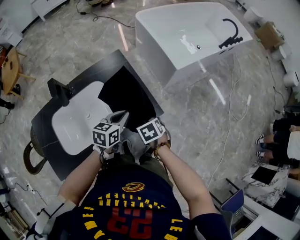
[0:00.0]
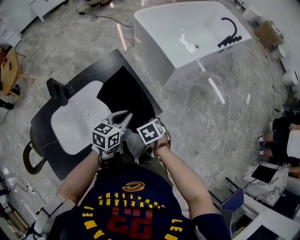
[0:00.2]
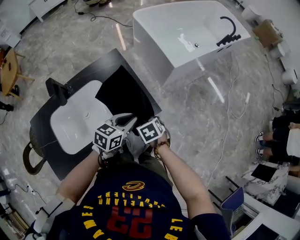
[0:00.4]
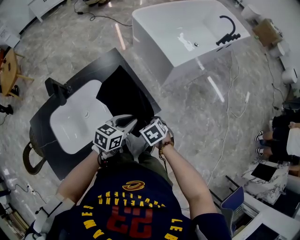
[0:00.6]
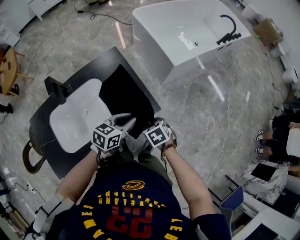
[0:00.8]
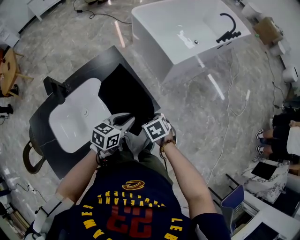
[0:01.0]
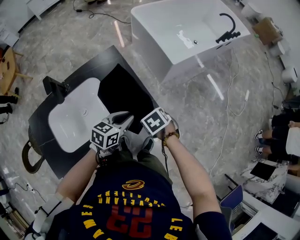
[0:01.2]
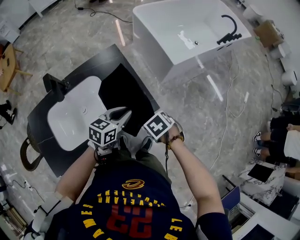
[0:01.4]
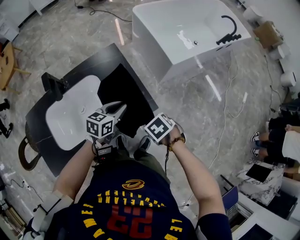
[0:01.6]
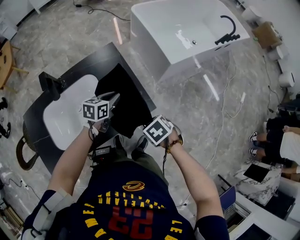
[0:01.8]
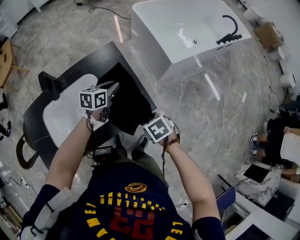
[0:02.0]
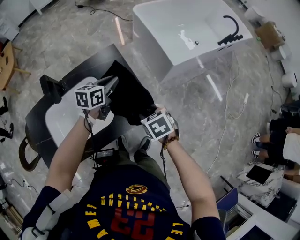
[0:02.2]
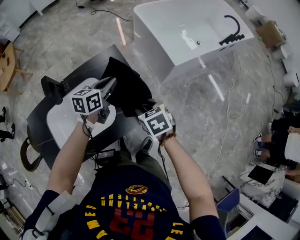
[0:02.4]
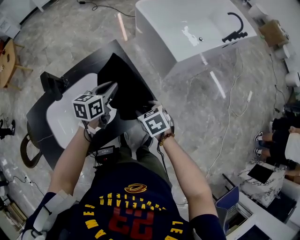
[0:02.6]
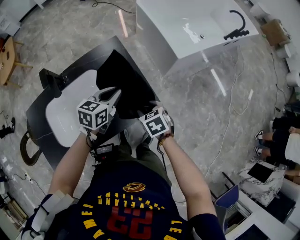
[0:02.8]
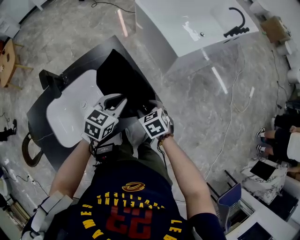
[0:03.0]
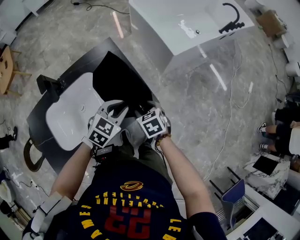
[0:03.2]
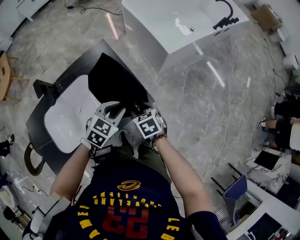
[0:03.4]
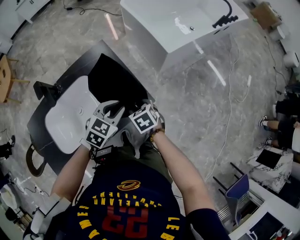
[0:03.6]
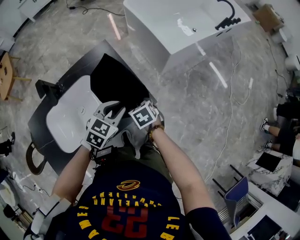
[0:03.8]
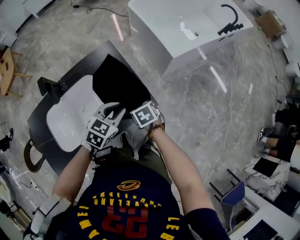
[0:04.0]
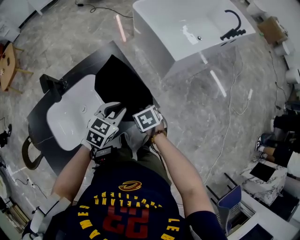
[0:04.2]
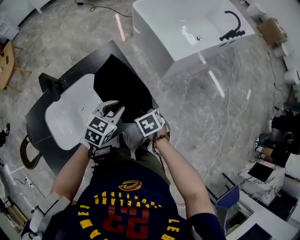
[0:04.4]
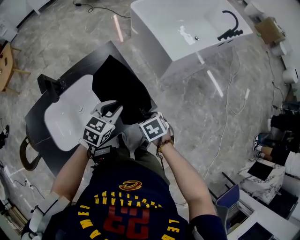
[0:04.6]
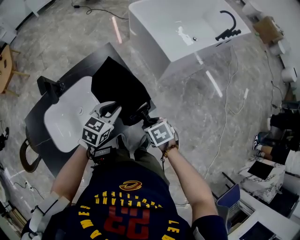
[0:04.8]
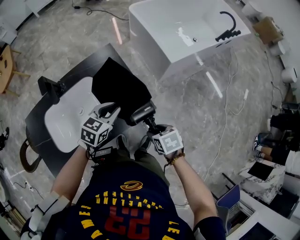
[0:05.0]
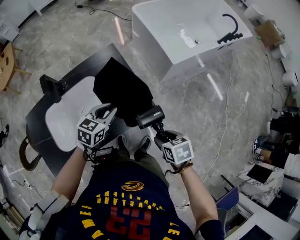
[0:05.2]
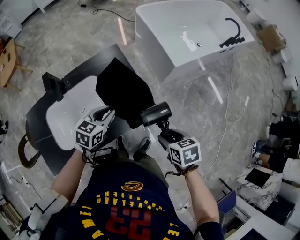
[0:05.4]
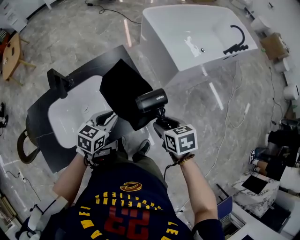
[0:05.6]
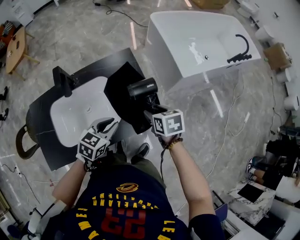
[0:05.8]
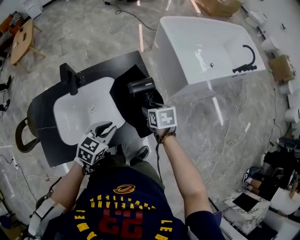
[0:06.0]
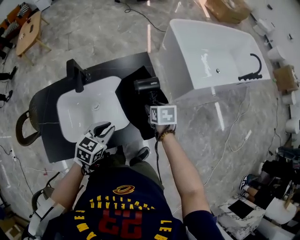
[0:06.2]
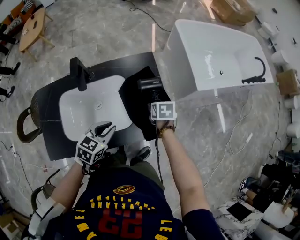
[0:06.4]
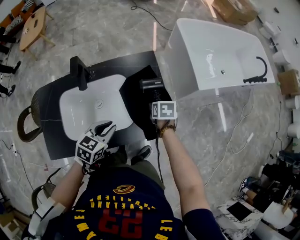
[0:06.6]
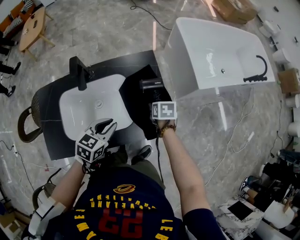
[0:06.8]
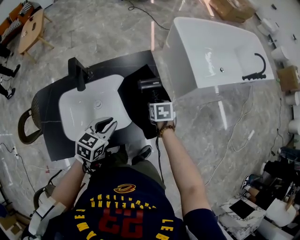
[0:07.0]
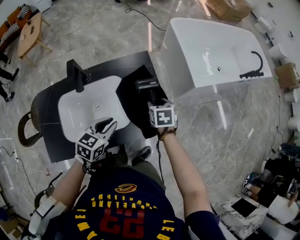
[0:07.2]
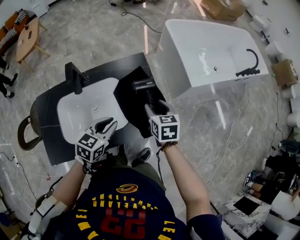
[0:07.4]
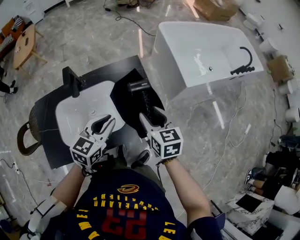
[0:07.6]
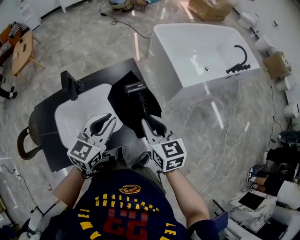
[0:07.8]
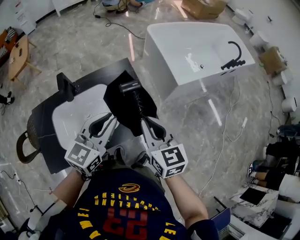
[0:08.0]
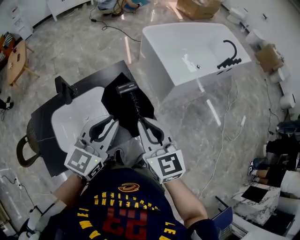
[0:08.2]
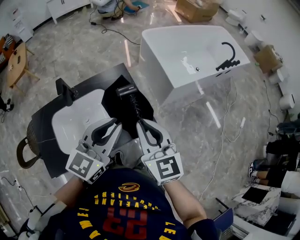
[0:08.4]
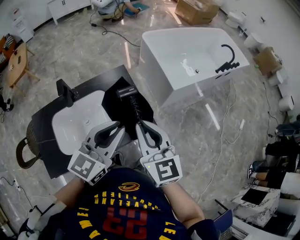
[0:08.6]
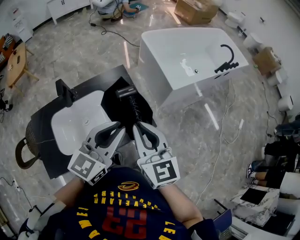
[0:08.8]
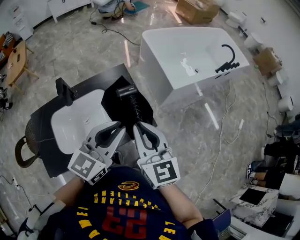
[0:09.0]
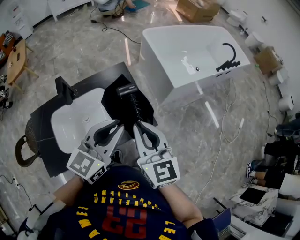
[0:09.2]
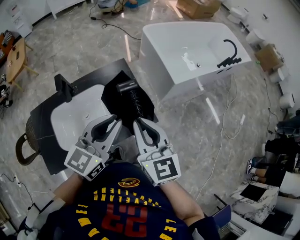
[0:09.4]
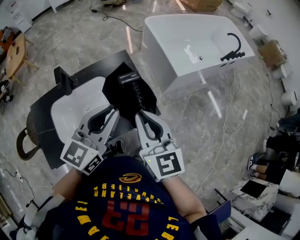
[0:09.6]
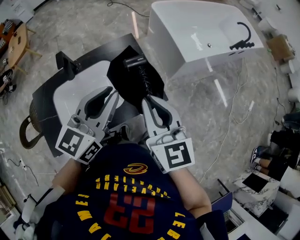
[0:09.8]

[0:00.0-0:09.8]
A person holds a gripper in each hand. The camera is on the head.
0:00.0 to 0:01.4: The right gripper ends up approximately 5 cm from where it was.
0:01.4 to 0:02.8: The right gripper turns by approximately 20 degrees, while the left gripper travels downward and back again, approximately 5 cm each way.
0:02.8 to 0:04.2: The left gripper travels backward by some 5 cm, and changes its angle by about 20 degrees.
0:04.2 to 0:05.6: The left gripper goes roughly 5 cm to the left. The right gripper moves upward and to the right, about 15 cm.
0:05.6 to 0:07.0: The right gripper moves forward, downward and to the left, roughly 20 cm. The left gripper heads to the left, covering approximately 10 cm.
0:07.0 to 0:08.4: The right gripper heads upward and backward, covering roughly 35 cm, points its fingers about 50 degrees further upward, and closes its fingers; the left gripper moves upward and to the right, about 25 cm, and angles its fingers upward, by roughly 30 degrees.
0:08.4 to 0:09.8: The grippers stay close to where they were, moving slightly.

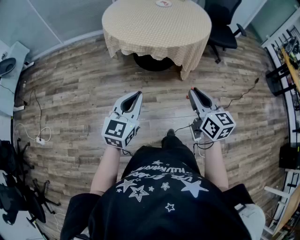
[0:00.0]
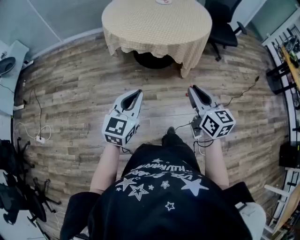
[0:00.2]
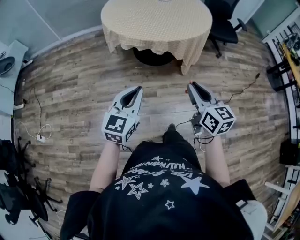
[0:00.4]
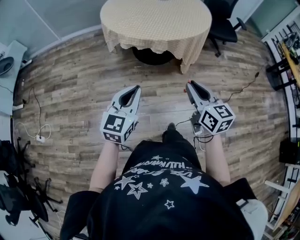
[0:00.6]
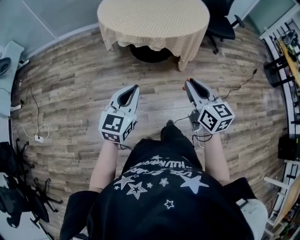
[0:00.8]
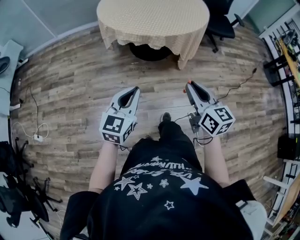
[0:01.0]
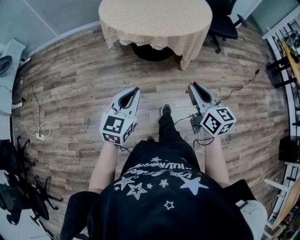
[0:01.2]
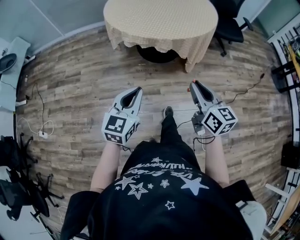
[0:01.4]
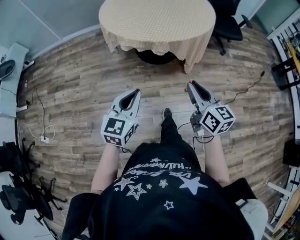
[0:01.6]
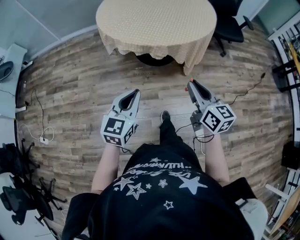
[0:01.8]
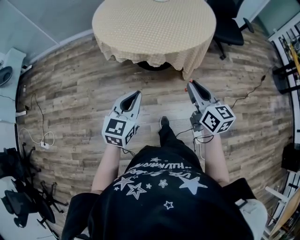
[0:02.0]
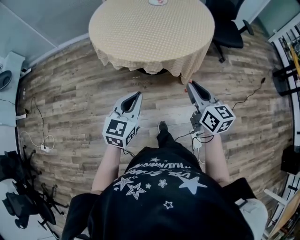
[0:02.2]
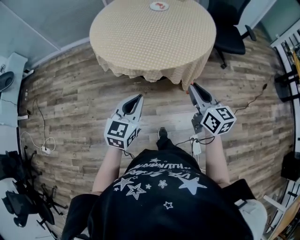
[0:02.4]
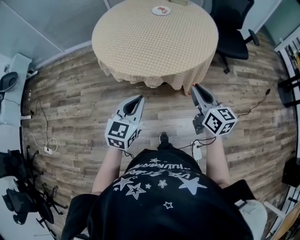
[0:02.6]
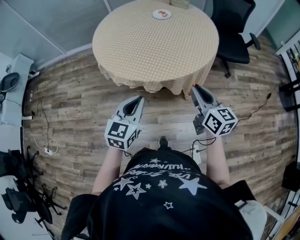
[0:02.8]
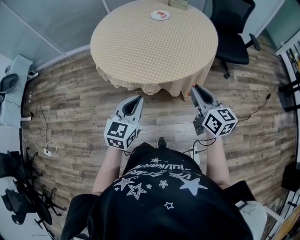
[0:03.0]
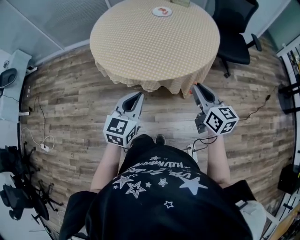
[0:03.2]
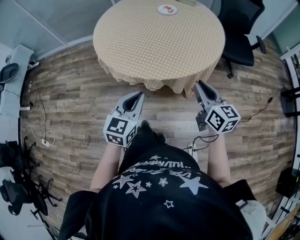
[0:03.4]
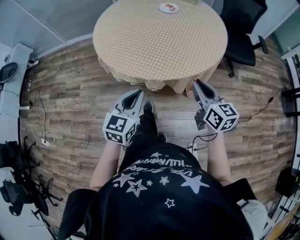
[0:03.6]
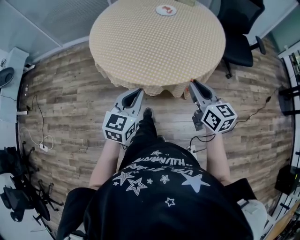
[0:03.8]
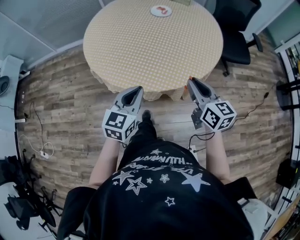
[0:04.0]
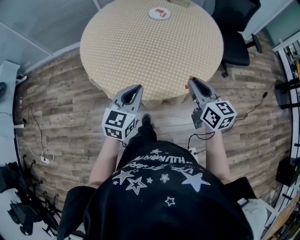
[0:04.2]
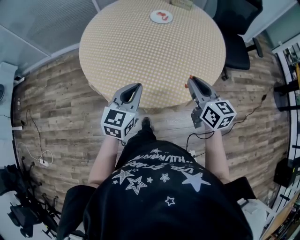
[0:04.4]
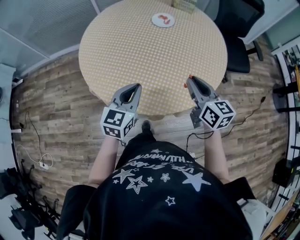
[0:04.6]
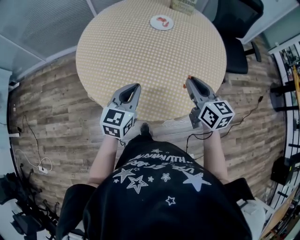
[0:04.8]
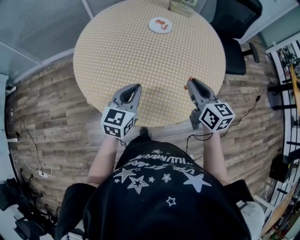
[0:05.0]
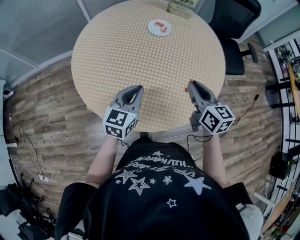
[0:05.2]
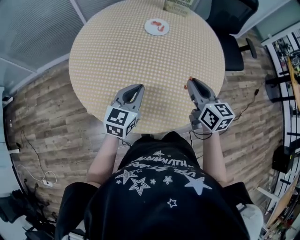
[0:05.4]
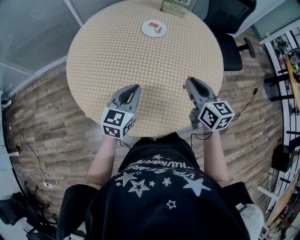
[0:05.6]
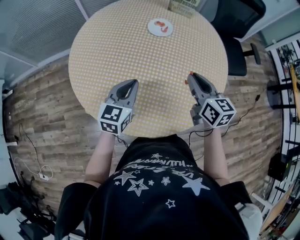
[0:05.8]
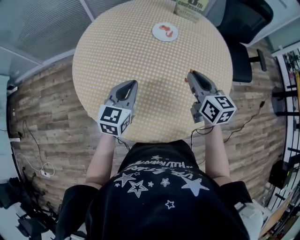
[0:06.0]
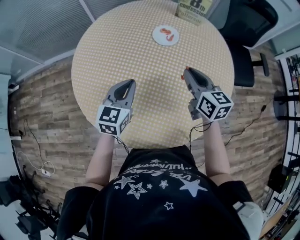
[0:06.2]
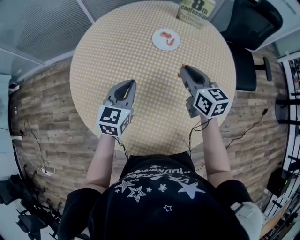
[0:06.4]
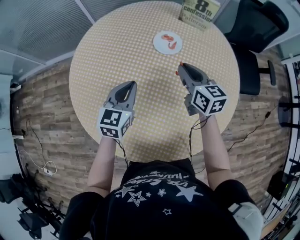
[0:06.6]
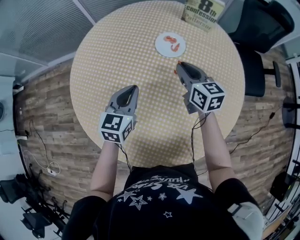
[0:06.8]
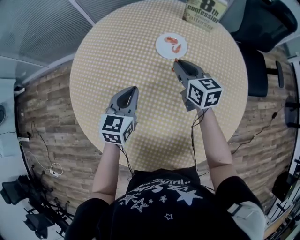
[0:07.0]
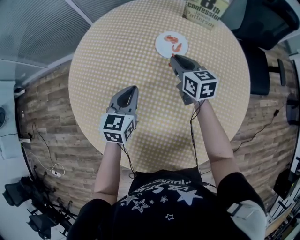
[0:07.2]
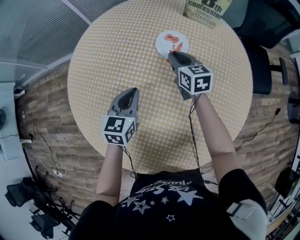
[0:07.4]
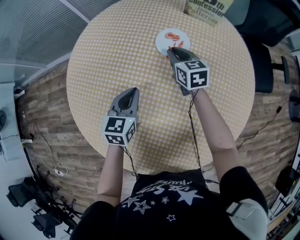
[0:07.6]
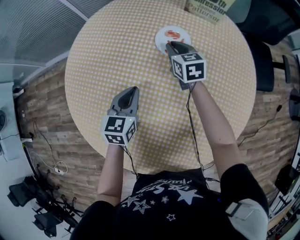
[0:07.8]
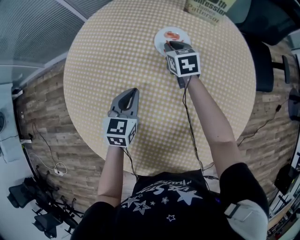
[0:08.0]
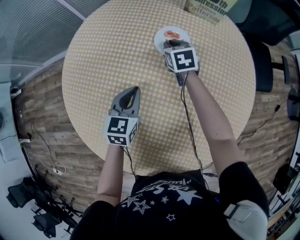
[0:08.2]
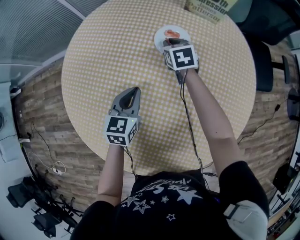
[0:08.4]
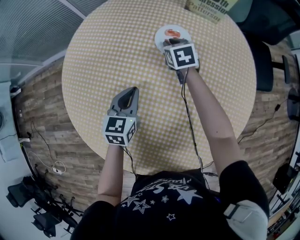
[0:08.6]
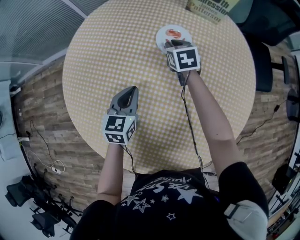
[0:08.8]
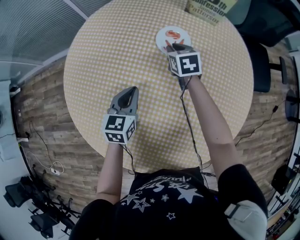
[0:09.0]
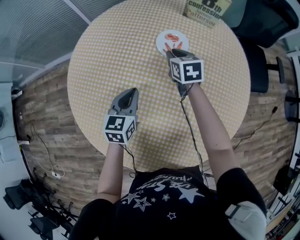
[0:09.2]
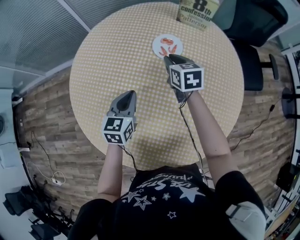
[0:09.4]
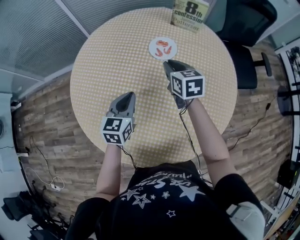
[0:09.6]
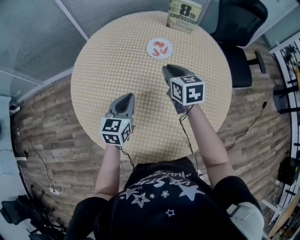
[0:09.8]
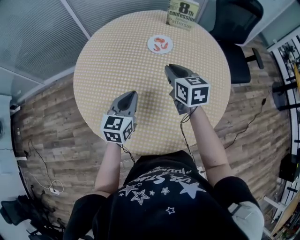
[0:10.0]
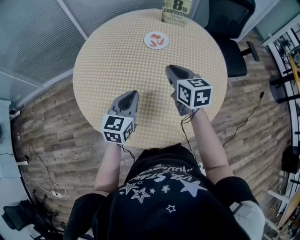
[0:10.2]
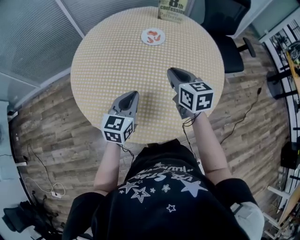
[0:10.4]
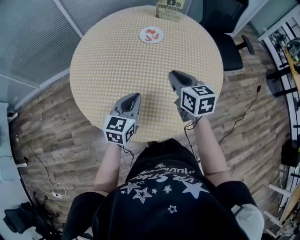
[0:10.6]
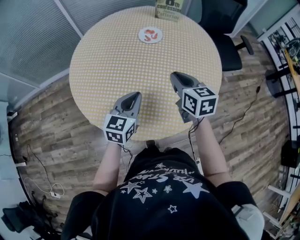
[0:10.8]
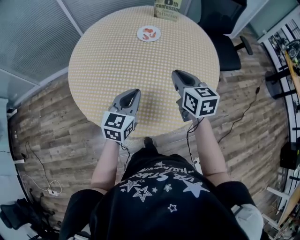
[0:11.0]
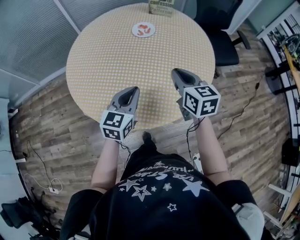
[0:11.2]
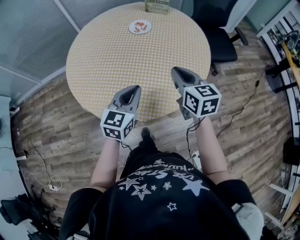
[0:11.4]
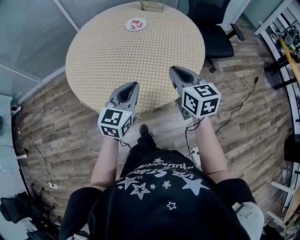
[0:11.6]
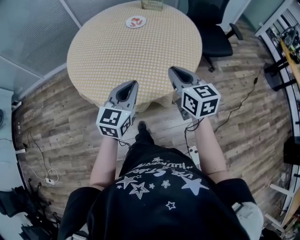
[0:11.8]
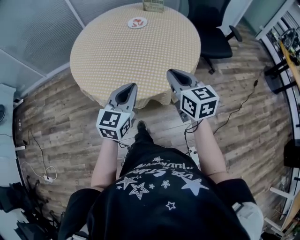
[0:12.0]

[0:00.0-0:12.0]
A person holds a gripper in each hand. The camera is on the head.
0:00.0 to 0:01.6: The left gripper changes place by approximately 5 cm. Meanwhile the right gripper travels forward by about 5 cm.
0:01.6 to 0:03.0: The grippers both shift forward and to the right by approximately 25 cm.
0:03.0 to 0:04.4: Both grippers move forward, approximately 20 cm.
0:04.4 to 0:06.0: The two grippers go approximately 20 cm forward.
0:06.0 to 0:07.6: The right gripper heads forward and downward, covering roughly 30 cm. Meanwhile the left gripper goes roughly 20 cm forward and downward.
0:09.0 to 0:10.4: The left gripper shifts about 20 cm backward and upward; the right gripper moves backward and upward, about 35 cm.
0:10.4 to 0:12.0: The grippers both shift backward and to the right by some 30 cm.

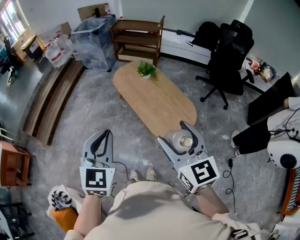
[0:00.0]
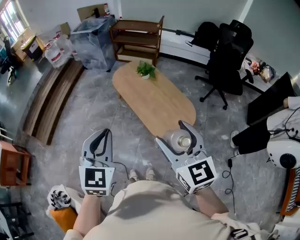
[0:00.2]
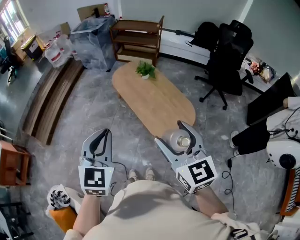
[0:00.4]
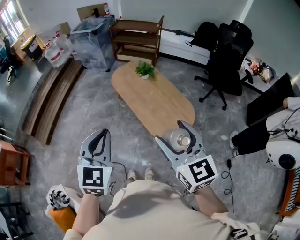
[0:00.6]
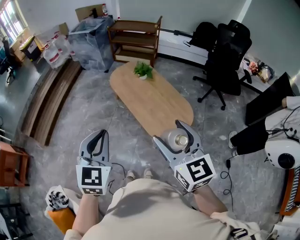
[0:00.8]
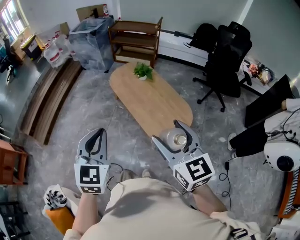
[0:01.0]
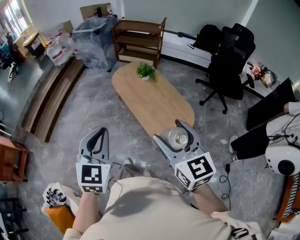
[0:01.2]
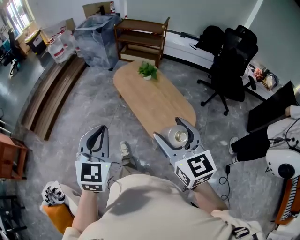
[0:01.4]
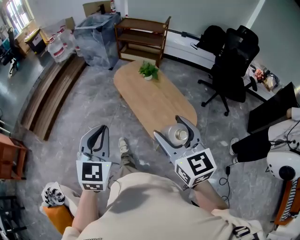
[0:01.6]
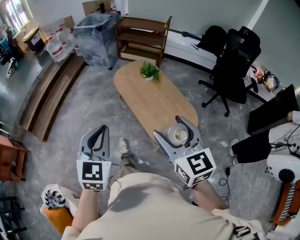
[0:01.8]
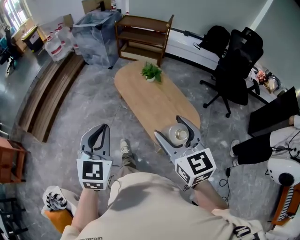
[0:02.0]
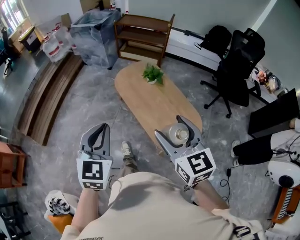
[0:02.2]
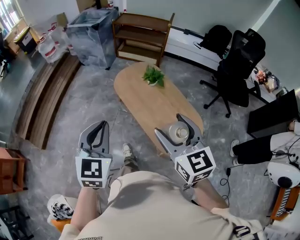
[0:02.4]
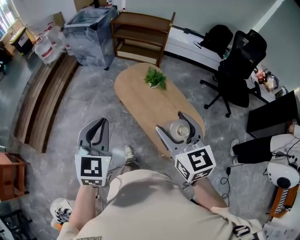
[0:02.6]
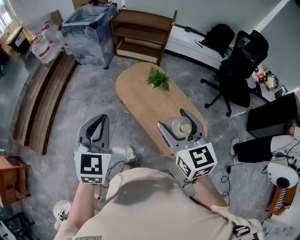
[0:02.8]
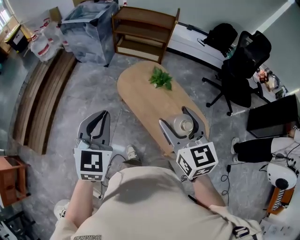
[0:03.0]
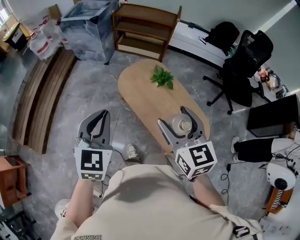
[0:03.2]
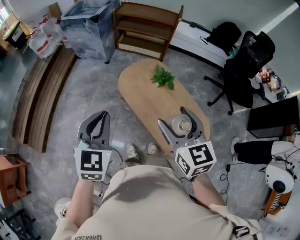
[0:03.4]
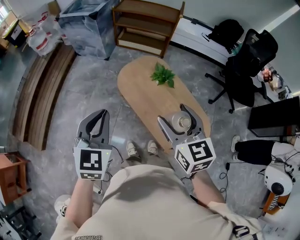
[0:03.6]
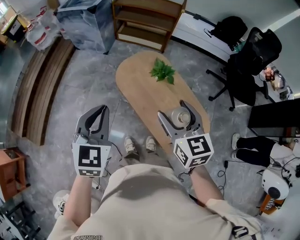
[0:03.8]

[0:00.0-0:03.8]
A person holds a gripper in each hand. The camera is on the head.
0:00.0 to 0:01.2: The grippers move only a little.
0:01.2 to 0:02.6: Both grippers move forward, about 30 cm.
0:02.6 to 0:03.8: The left gripper moves forward, about 15 cm, while the right gripper heads forward and downward, covering approximately 20 cm.
